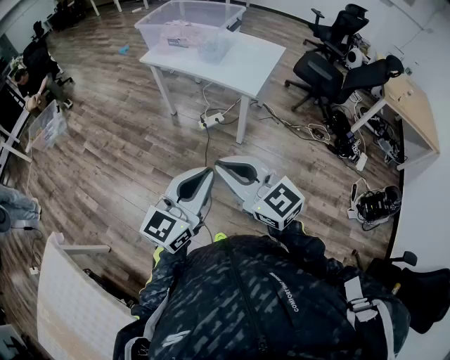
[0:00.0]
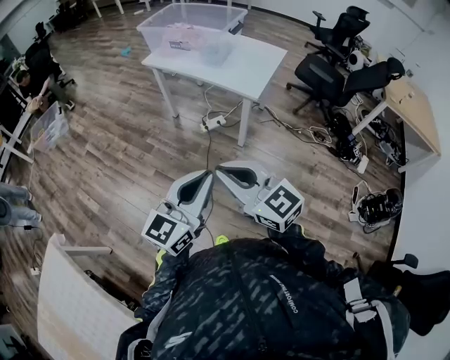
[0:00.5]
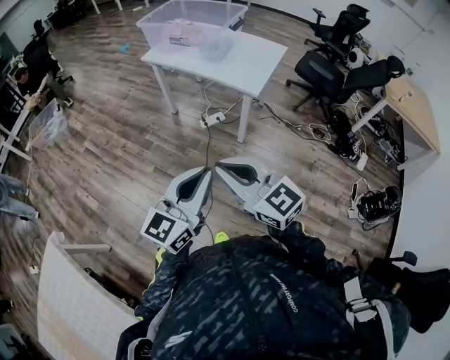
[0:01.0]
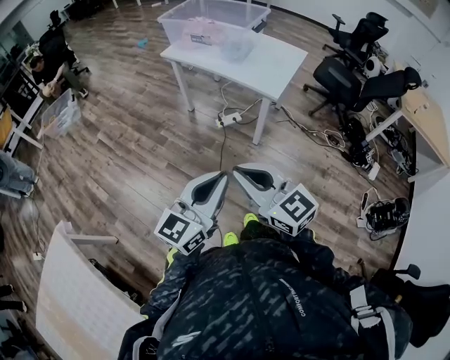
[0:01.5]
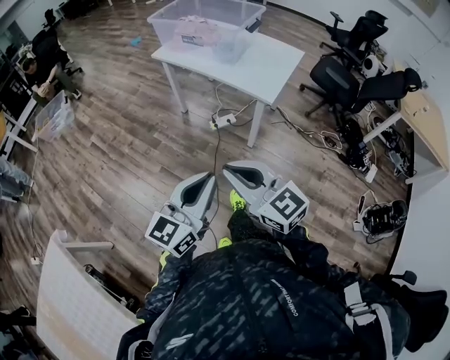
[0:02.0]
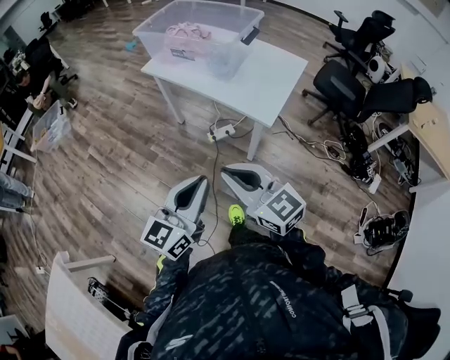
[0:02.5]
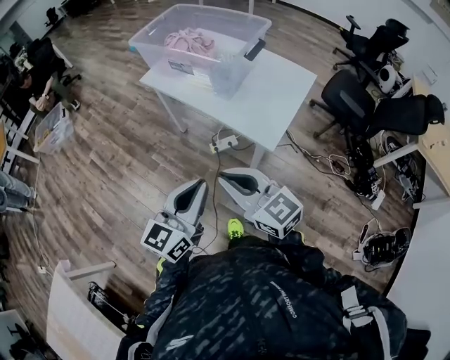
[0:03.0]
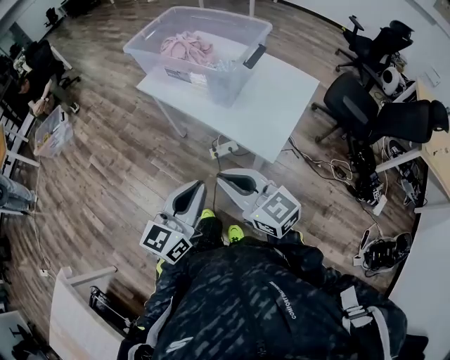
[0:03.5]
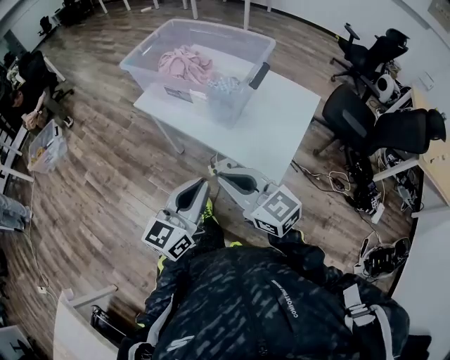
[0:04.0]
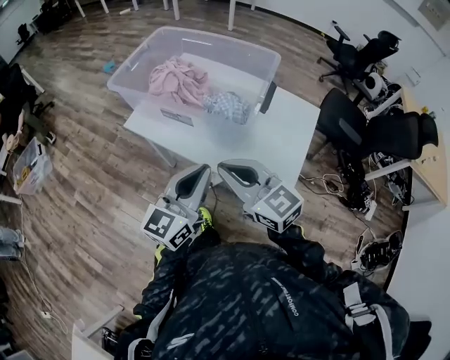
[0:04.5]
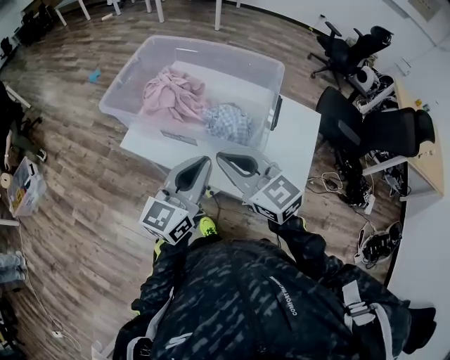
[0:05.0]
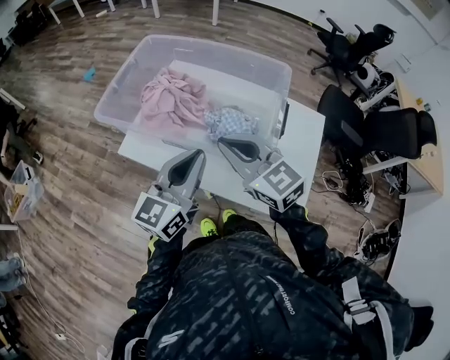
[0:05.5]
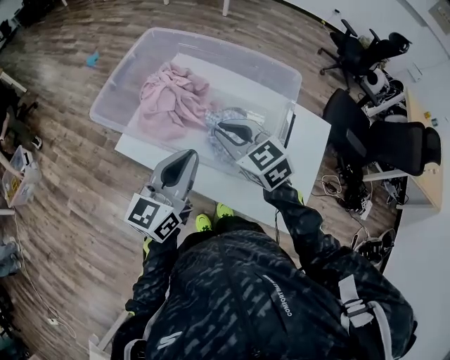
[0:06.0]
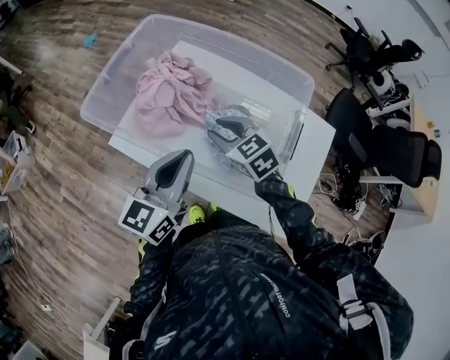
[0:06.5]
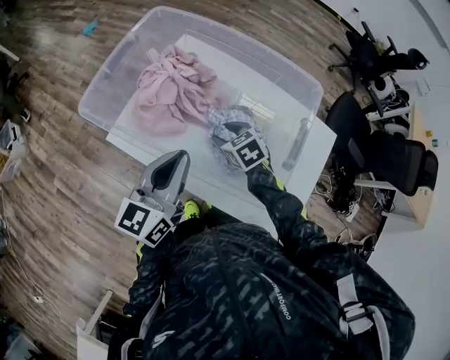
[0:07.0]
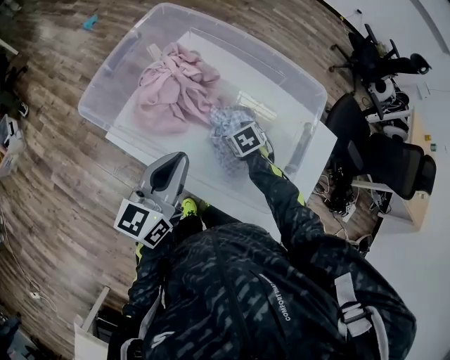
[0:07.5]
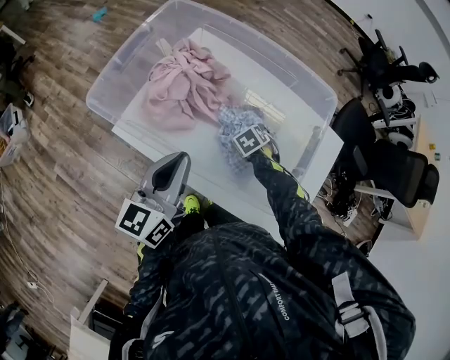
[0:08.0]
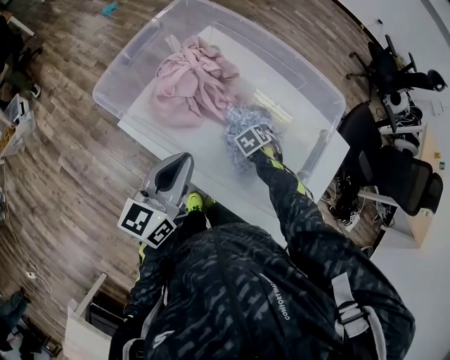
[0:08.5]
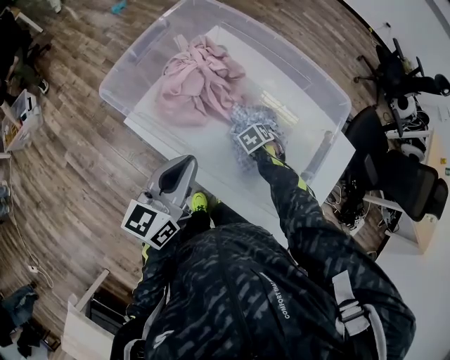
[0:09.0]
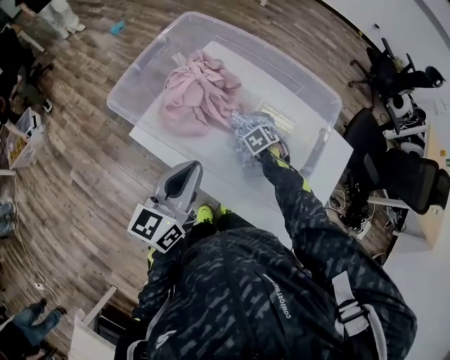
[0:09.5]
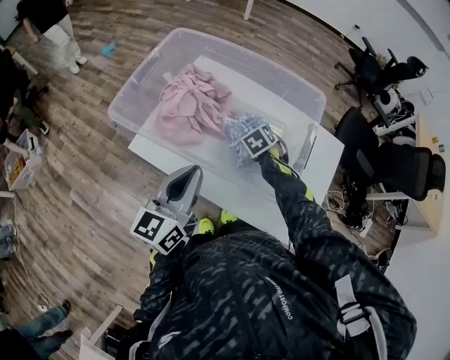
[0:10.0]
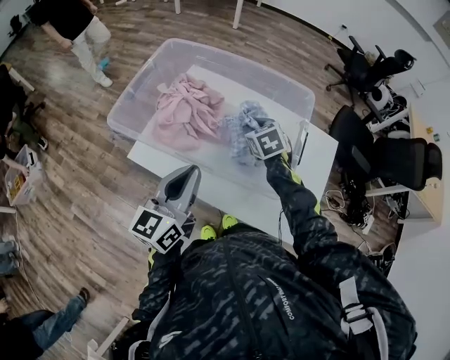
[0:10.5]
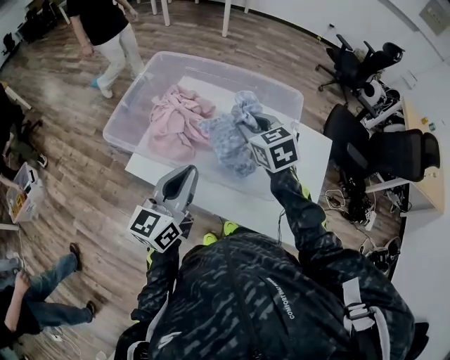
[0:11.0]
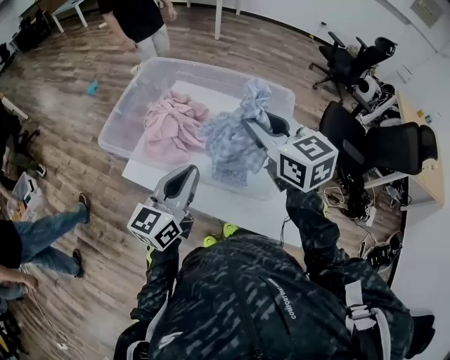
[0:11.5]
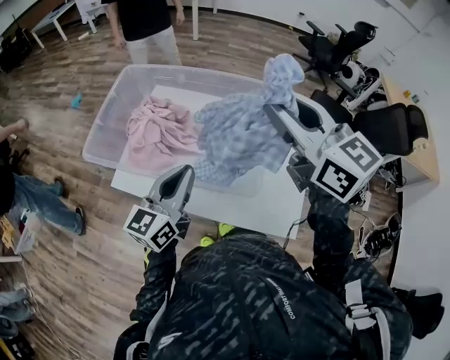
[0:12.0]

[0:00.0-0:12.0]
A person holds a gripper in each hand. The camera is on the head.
0:00.0 to 0:02.0: The two grippers go about 5 cm forward.
0:02.0 to 0:04.0: The two grippers travel together, forward, some 40 cm.
0:04.0 to 0:06.0: The two grippers go about 40 cm forward. The right gripper rotates about 20 degrees.
0:06.0 to 0:08.0: The left gripper ends up about 10 cm from where it was. Meanwhile the right gripper moves downward, about 30 cm, angles its fingers downward, by roughly 50 degrees, and opens.
0:08.0 to 0:10.0: The left gripper shifts by about 5 cm, while the right gripper is displaced upward by approximately 10 cm, and closes.
0:10.0 to 0:12.0: The right gripper heads upward, covering roughly 40 cm, and tips its fingers upward by roughly 60 degrees; the left gripper shifts some 10 cm to the right.

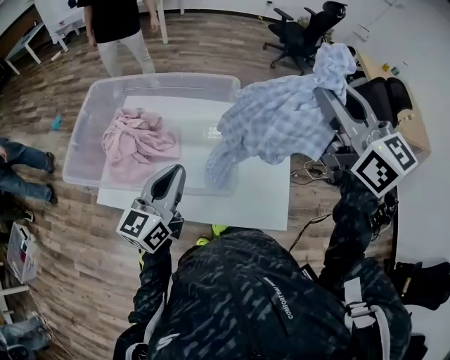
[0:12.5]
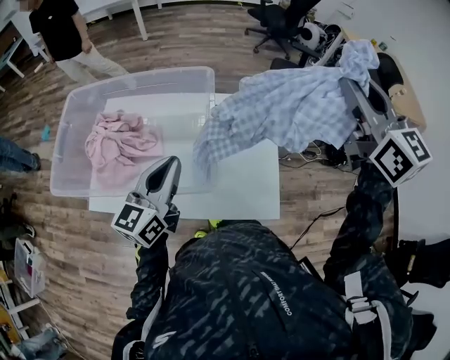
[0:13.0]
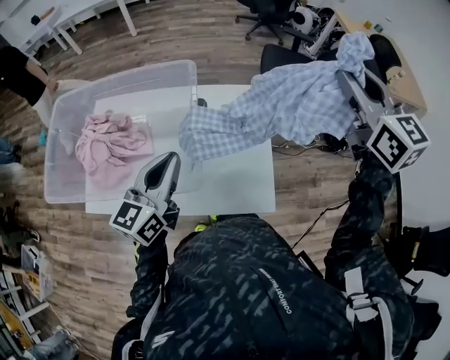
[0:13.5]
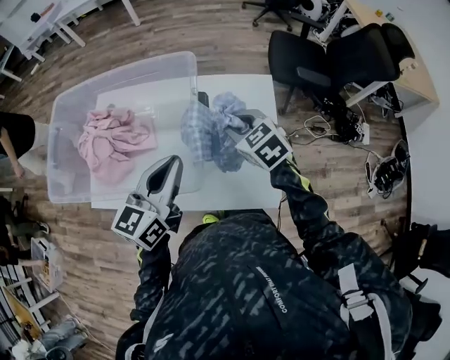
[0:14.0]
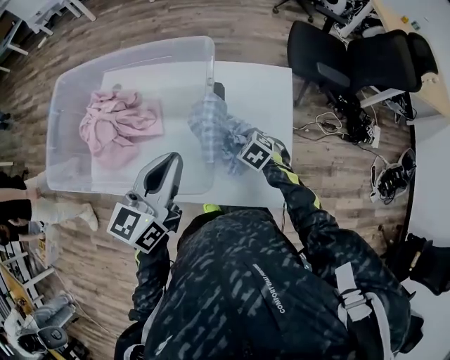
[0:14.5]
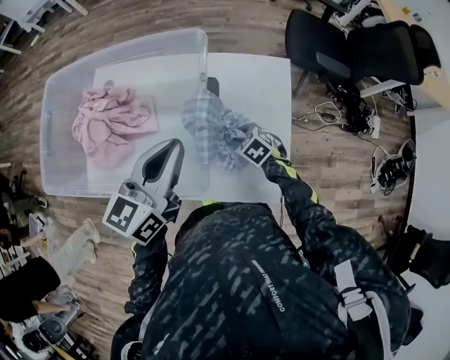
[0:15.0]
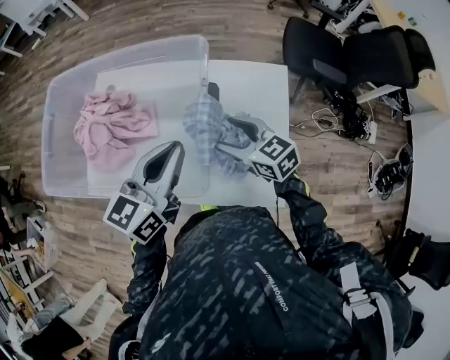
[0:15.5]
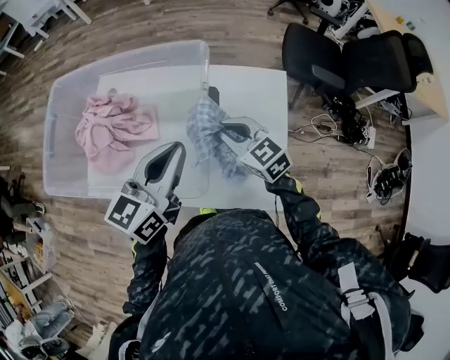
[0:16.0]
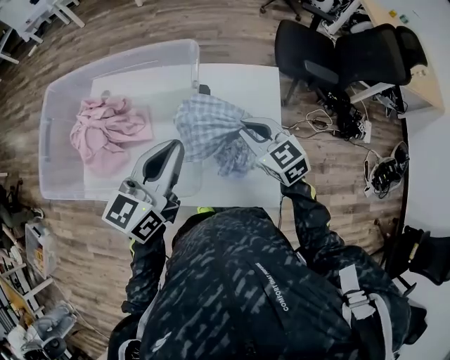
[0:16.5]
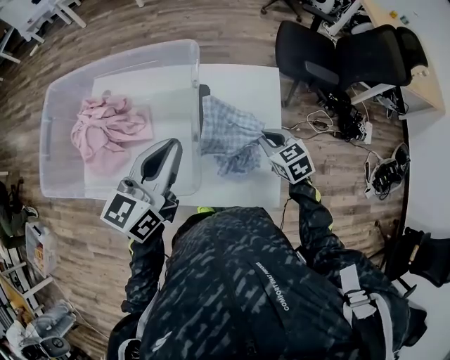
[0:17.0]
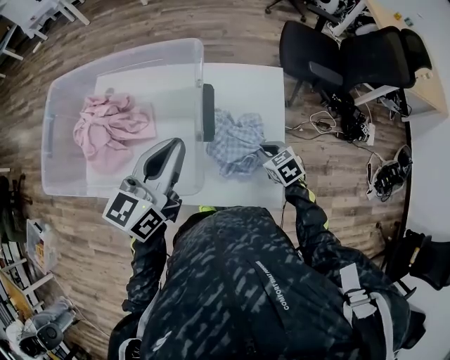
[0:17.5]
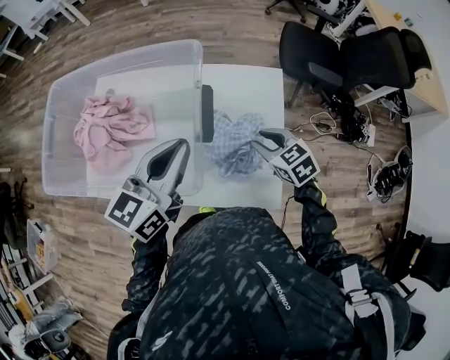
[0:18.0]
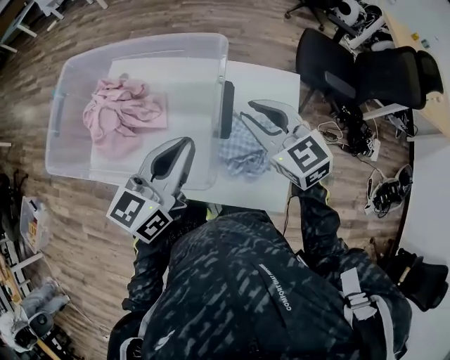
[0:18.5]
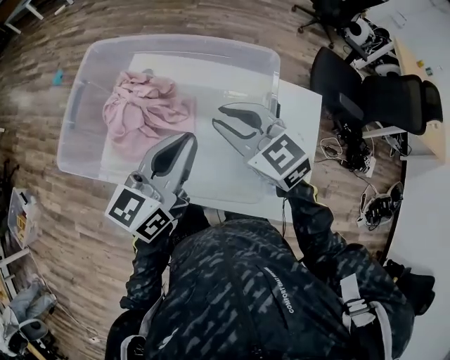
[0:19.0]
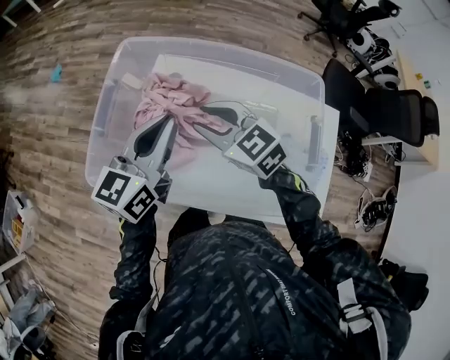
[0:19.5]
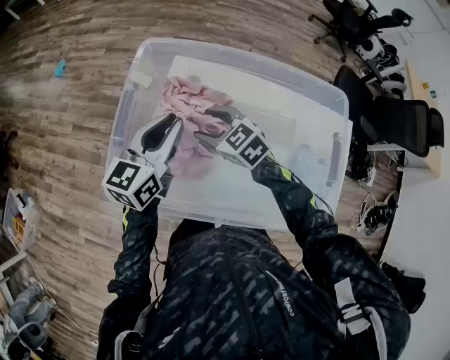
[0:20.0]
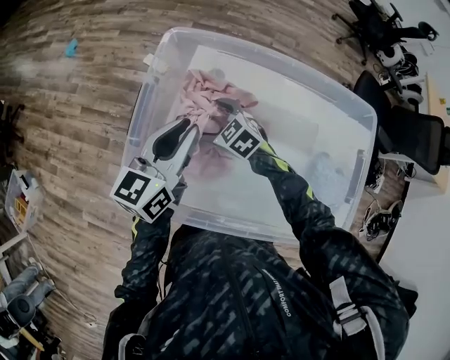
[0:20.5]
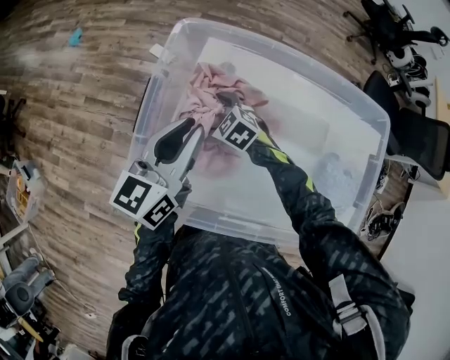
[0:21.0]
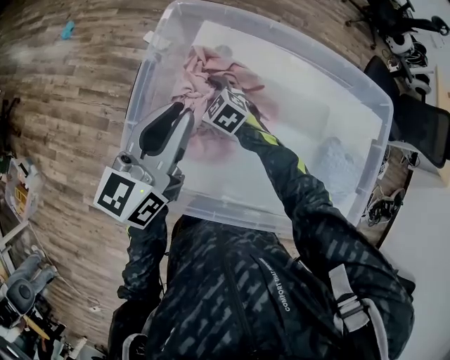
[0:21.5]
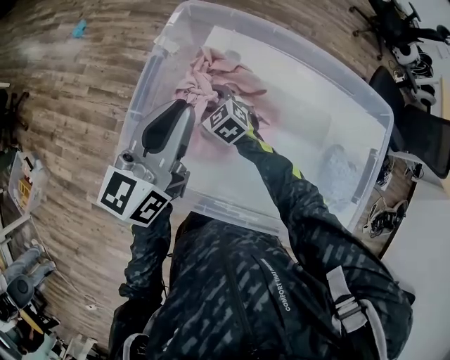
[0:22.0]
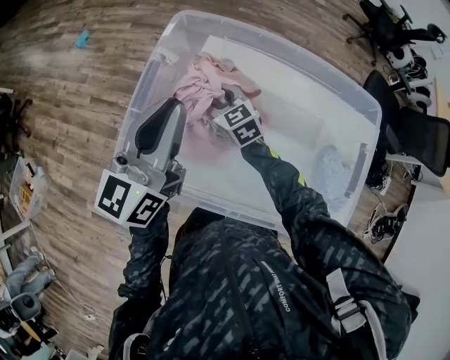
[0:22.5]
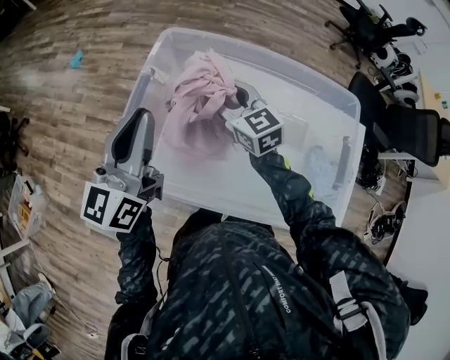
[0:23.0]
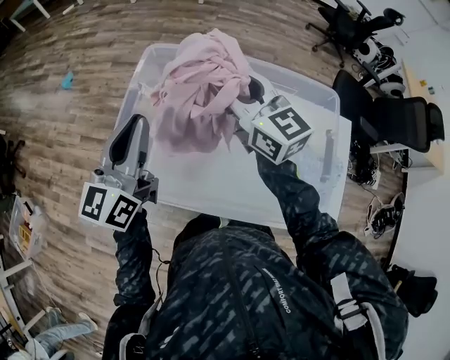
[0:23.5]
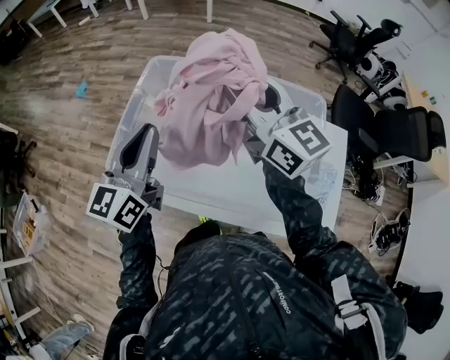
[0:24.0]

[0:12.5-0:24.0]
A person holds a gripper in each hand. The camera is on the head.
0:12.5 to 0:14.5: The right gripper travels downward by about 50 cm, and tips its fingers downward by some 60 degrees, while the left gripper goes about 10 cm to the right.
0:14.5 to 0:16.5: The right gripper moves upward, some 20 cm, tips its fingers upward by roughly 40 degrees, and opens, then closes again.
0:16.5 to 0:18.5: The right gripper travels upward by approximately 10 cm.
0:18.5 to 0:20.0: The pair of grippers is taken to the left and forward, about 40 cm. The right gripper turns by some 30 degrees.
0:20.0 to 0:22.0: The left gripper travels to the left by roughly 5 cm. The right gripper shifts about 20 cm downward, to the left and forward, and opens and closes again.
0:22.0 to 0:24.0: The left gripper shifts approximately 15 cm upward and backward; the right gripper shifts approximately 50 cm upward and to the right, and tilts its fingers approximately 50 degrees upward.

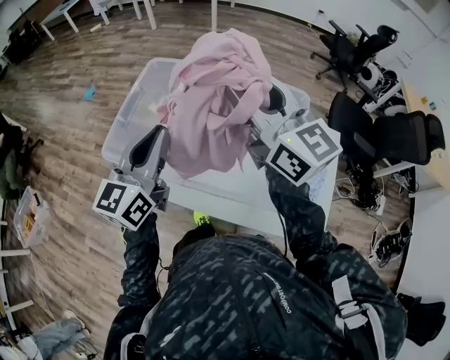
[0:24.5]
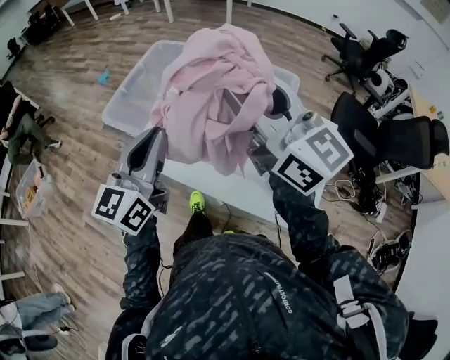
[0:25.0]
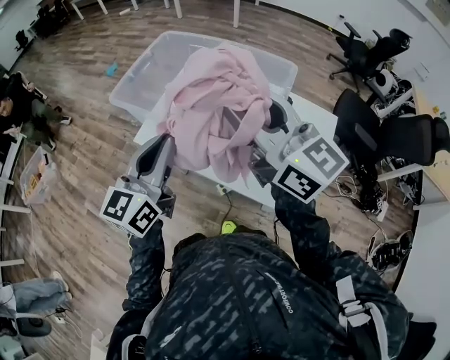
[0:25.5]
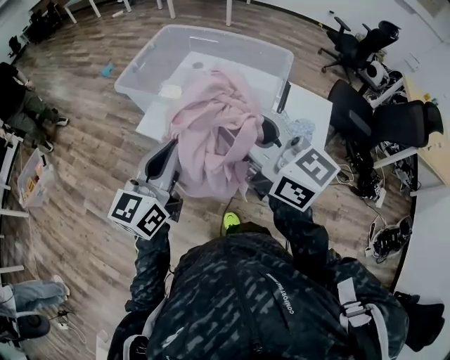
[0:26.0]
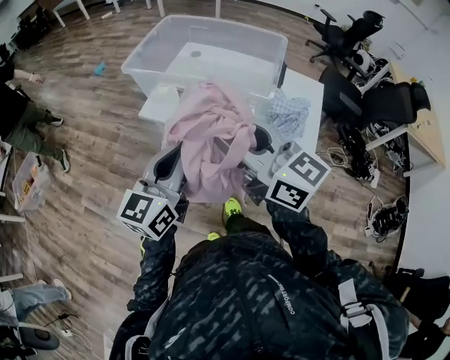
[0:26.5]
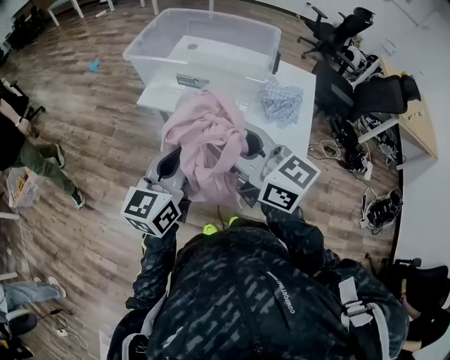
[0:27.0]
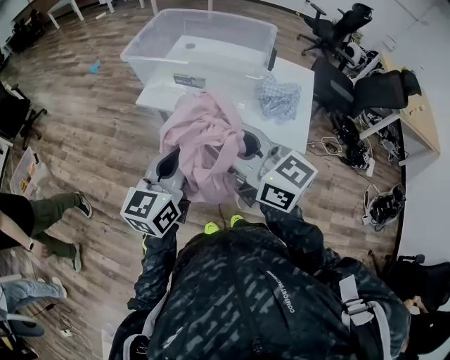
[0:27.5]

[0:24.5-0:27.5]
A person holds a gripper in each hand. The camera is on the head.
0:24.5 to 0:26.0: Both grippers travel together backward, approximately 30 cm.
0:26.0 to 0:27.5: The left gripper travels backward by approximately 20 cm; the right gripper travels backward and to the left by roughly 20 cm.
